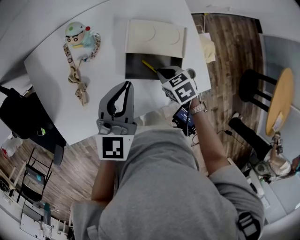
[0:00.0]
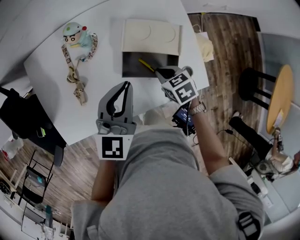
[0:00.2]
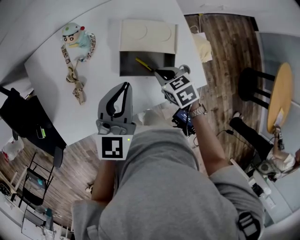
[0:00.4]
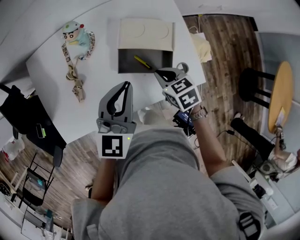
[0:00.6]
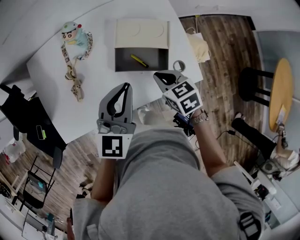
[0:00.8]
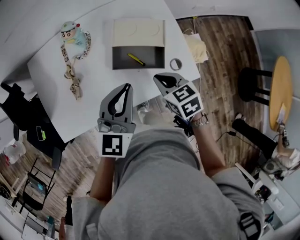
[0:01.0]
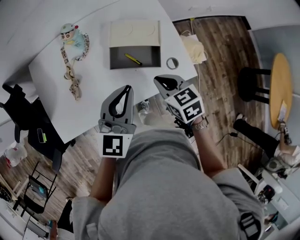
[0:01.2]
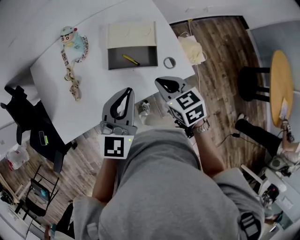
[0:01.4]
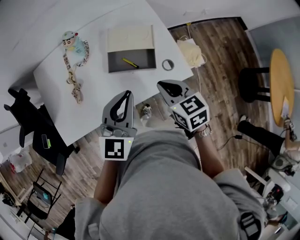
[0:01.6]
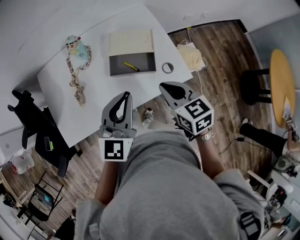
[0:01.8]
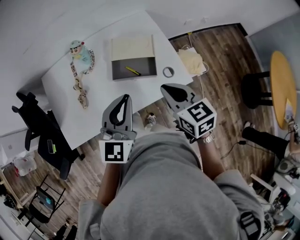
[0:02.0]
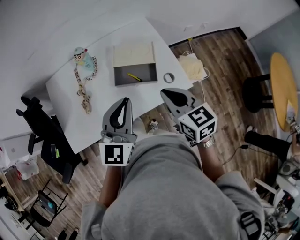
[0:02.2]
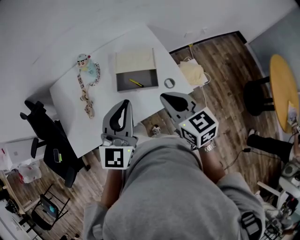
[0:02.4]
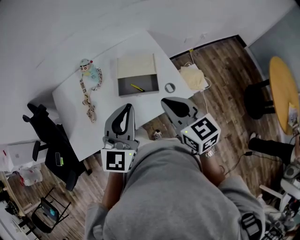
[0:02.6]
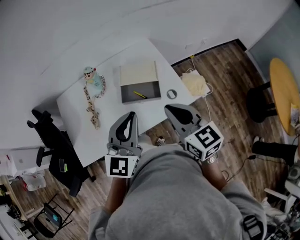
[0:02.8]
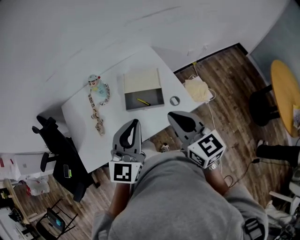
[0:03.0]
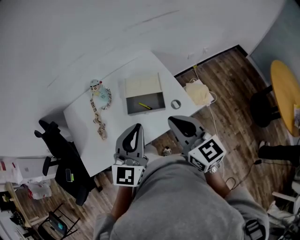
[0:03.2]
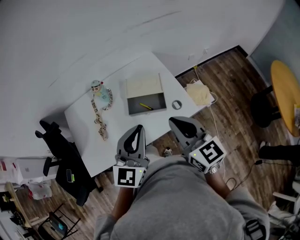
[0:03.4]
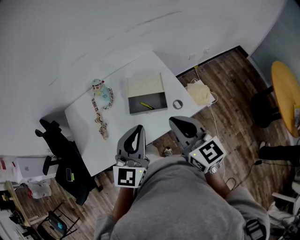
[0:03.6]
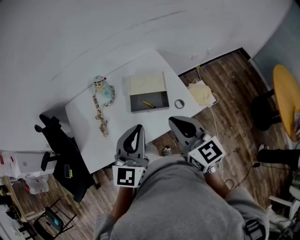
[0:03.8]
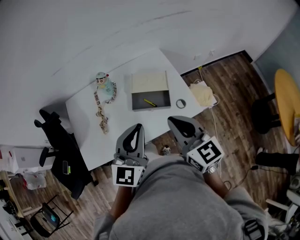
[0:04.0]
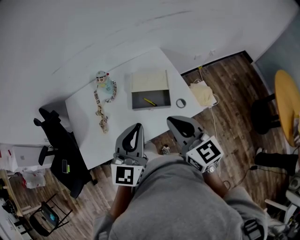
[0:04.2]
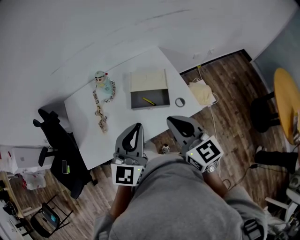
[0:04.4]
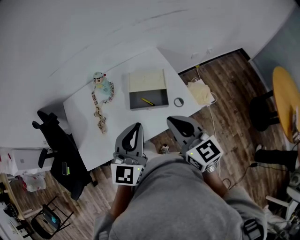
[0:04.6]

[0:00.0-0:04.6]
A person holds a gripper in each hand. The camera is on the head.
0.0 to 1.6 s: The right gripper shifts approximately 20 cm upward and backward, and turns by some 30 degrees. The left gripper moves backward, approximately 15 cm.
1.6 to 3.0 s: The right gripper is displaced upward by approximately 15 cm, and swivels some 30 degrees. Meanwhile the left gripper is displaced upward by about 10 cm.
3.0 to 4.6 s: There are only small adjustments of the grippers.

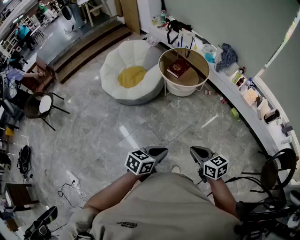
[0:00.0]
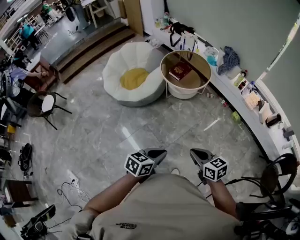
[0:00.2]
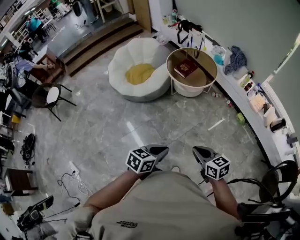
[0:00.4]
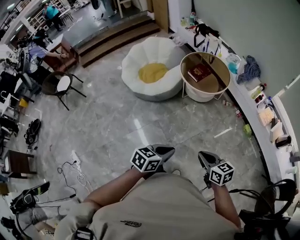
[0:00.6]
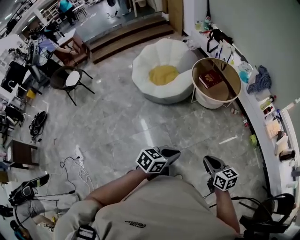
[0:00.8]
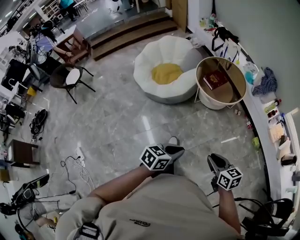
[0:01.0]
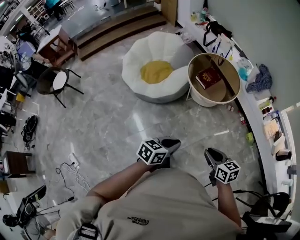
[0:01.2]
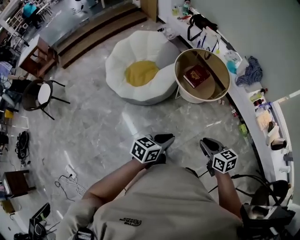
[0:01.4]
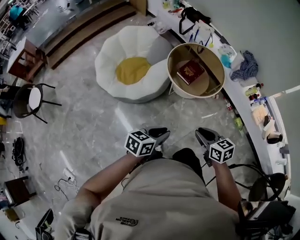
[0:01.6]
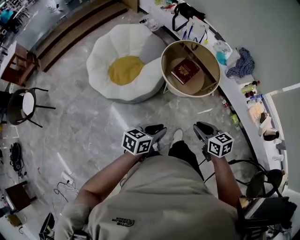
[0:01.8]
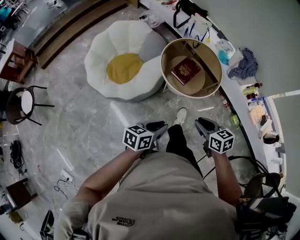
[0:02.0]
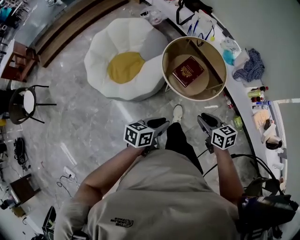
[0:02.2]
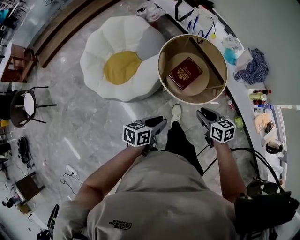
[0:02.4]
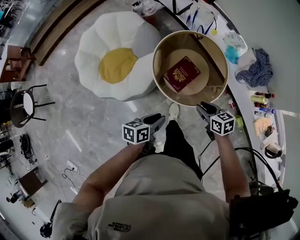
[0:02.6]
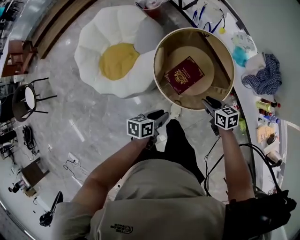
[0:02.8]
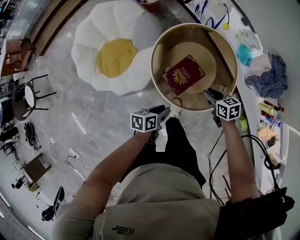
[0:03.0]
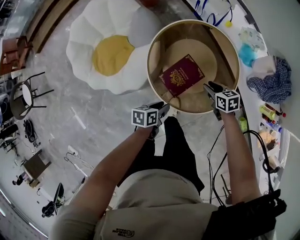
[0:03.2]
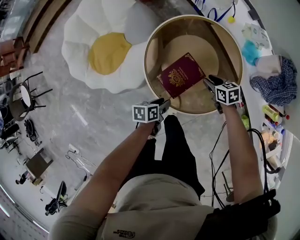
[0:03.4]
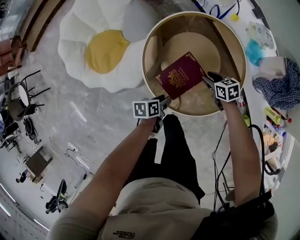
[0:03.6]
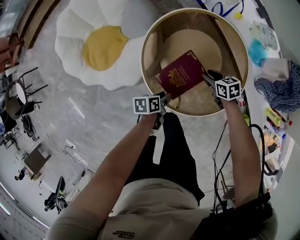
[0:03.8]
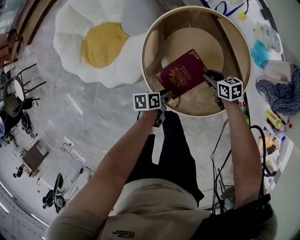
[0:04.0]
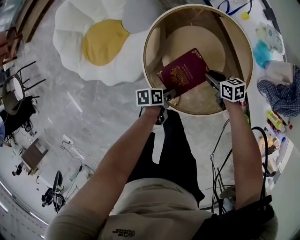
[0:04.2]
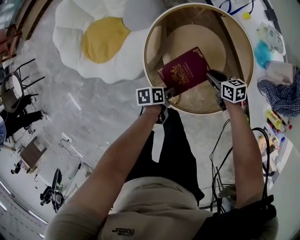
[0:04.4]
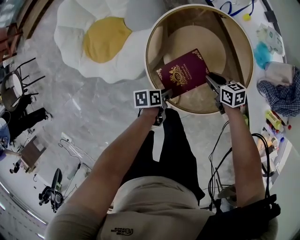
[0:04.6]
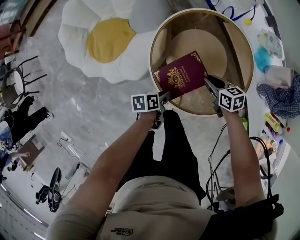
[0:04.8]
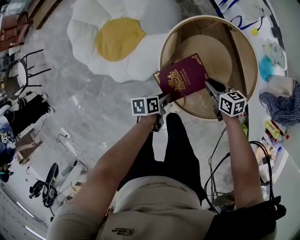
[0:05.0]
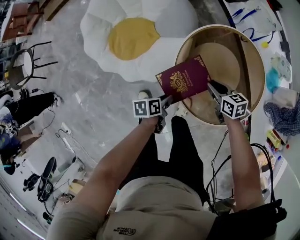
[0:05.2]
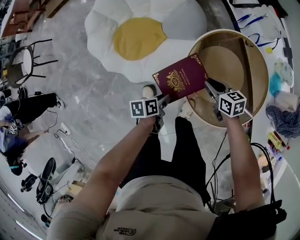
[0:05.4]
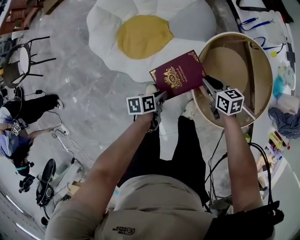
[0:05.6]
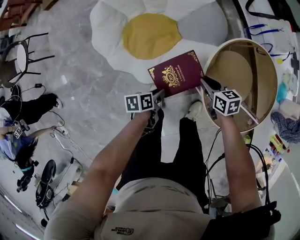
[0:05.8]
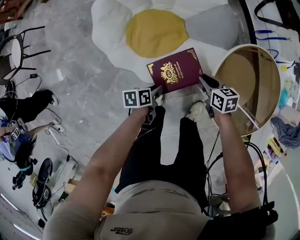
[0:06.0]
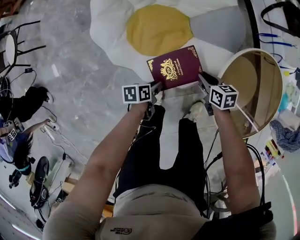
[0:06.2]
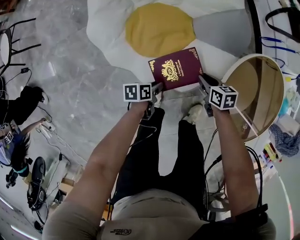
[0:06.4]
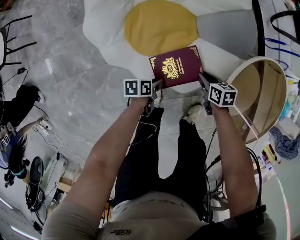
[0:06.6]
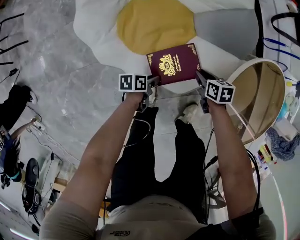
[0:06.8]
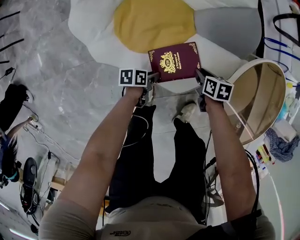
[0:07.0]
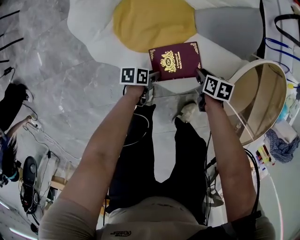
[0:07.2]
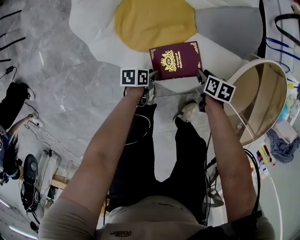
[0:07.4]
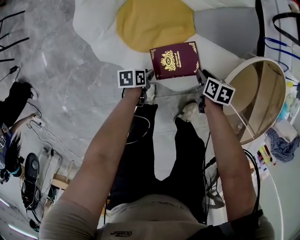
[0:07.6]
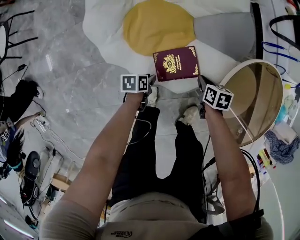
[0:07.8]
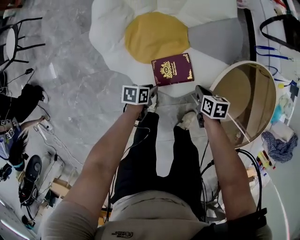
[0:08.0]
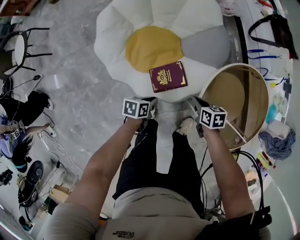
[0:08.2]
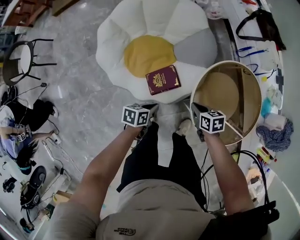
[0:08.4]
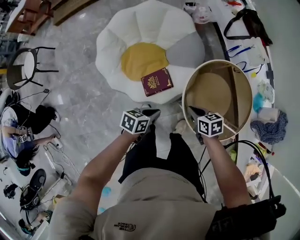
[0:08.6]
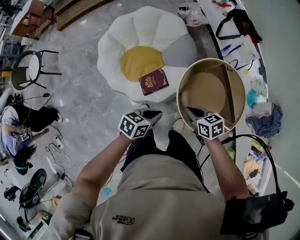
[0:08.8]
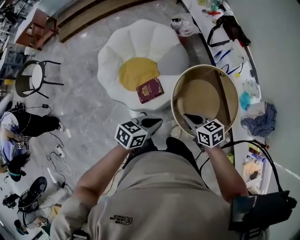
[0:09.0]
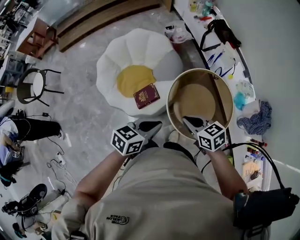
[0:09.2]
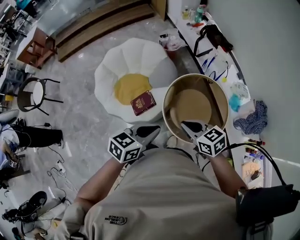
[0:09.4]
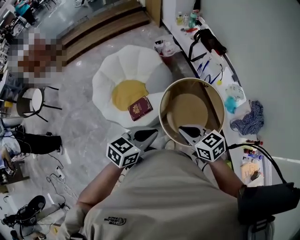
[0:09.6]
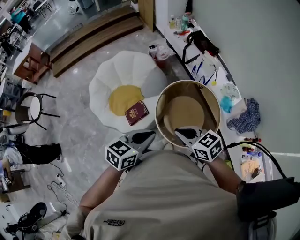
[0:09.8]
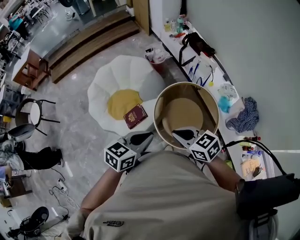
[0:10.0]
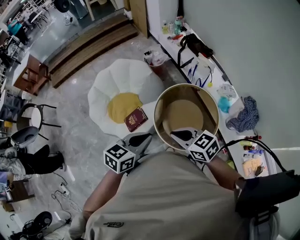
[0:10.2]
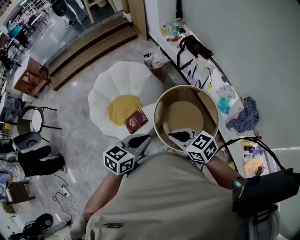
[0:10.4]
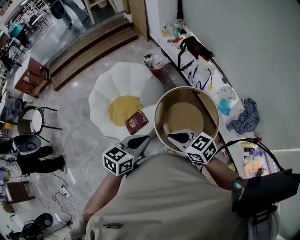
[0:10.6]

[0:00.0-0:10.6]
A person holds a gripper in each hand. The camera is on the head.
0.0 to 1.6 s: The two grippers go about 30 cm forward.
1.6 to 3.0 s: The pair of grippers is taken forward, about 50 cm. Both grippers travel together downward, some 25 cm. The left gripper turns by approximately 30 degrees.
3.0 to 4.6 s: The grippers both shift downward by about 15 cm. The left gripper swivels some 20 degrees.
4.6 to 6.0 s: The left gripper moves roughly 5 cm upward and comes back, while the right gripper moves some 10 cm upward and comes back.
6.0 to 7.6 s: The grippers both shift downward by about 15 cm. The right gripper swivels about 20 degrees.
7.6 to 9.0 s: The right gripper is displaced upward by roughly 50 cm, swivels roughly 40 degrees, and closes its fingers. Meanwhile the left gripper travels upward and to the right by about 60 cm, rotates around the line of its fingers by roughly 50 degrees, clockwise from behind, and closes its fingers.
9.0 to 10.6 s: The right gripper travels upward and backward by approximately 15 cm. The left gripper travels upward and to the right by about 15 cm.

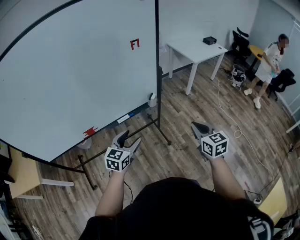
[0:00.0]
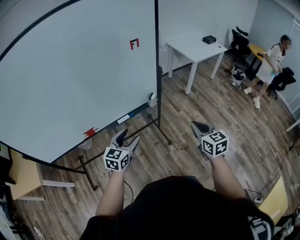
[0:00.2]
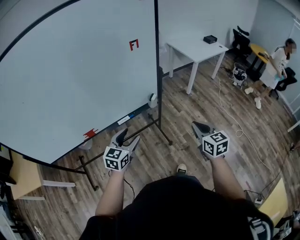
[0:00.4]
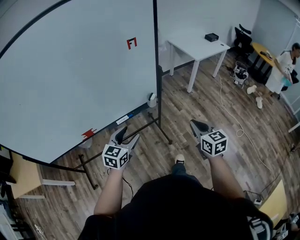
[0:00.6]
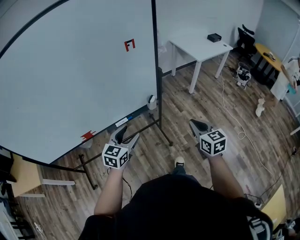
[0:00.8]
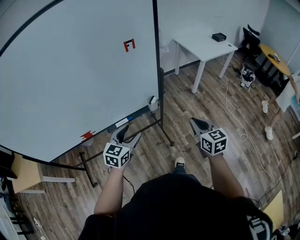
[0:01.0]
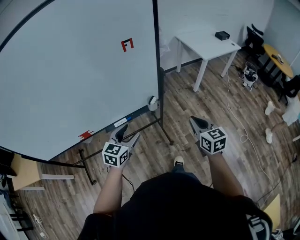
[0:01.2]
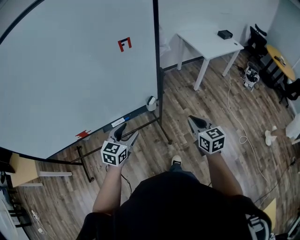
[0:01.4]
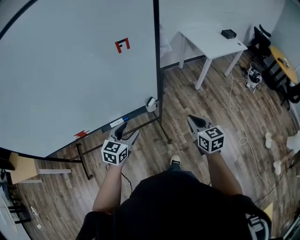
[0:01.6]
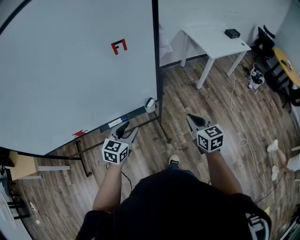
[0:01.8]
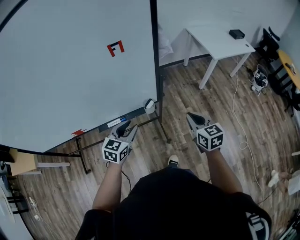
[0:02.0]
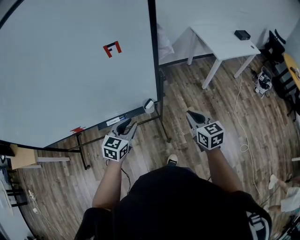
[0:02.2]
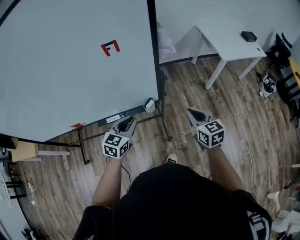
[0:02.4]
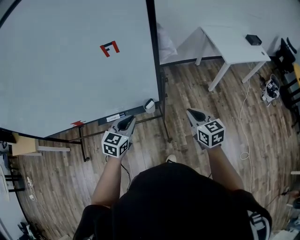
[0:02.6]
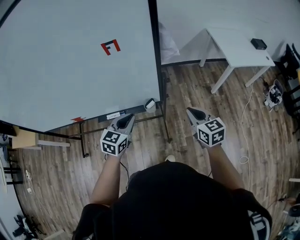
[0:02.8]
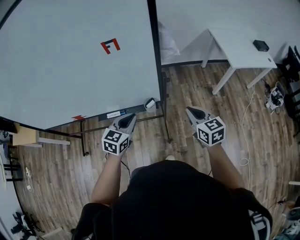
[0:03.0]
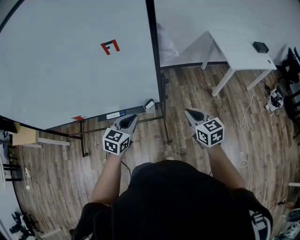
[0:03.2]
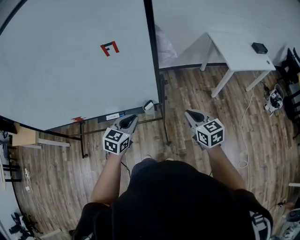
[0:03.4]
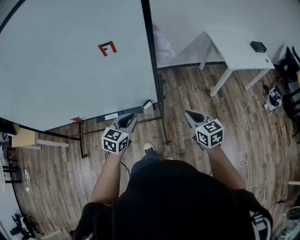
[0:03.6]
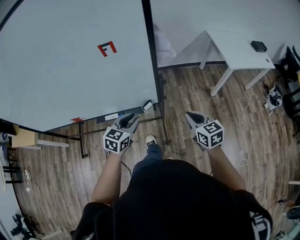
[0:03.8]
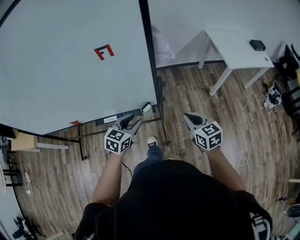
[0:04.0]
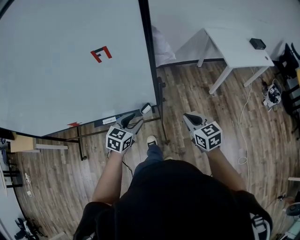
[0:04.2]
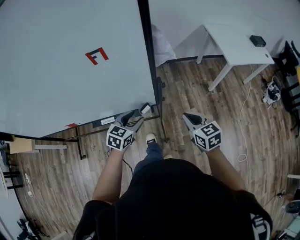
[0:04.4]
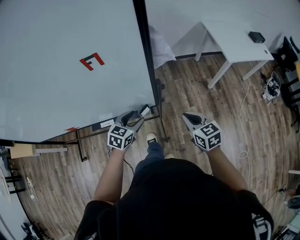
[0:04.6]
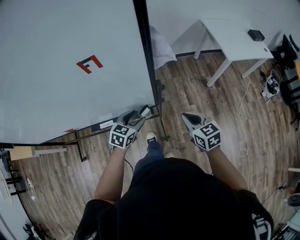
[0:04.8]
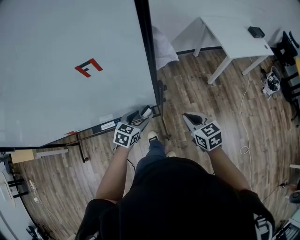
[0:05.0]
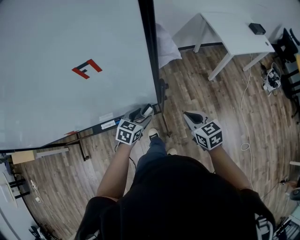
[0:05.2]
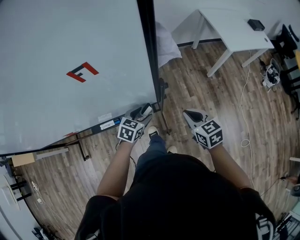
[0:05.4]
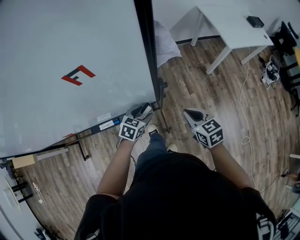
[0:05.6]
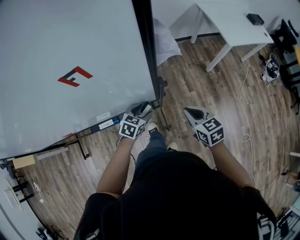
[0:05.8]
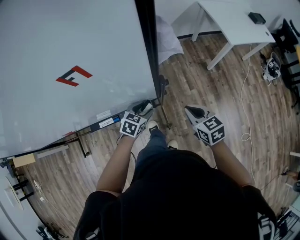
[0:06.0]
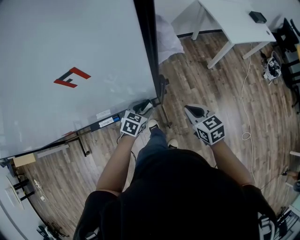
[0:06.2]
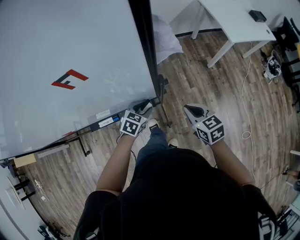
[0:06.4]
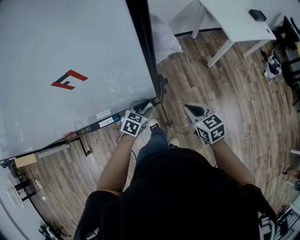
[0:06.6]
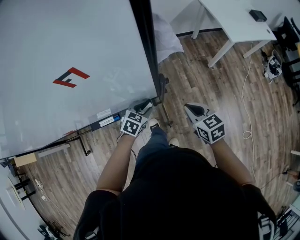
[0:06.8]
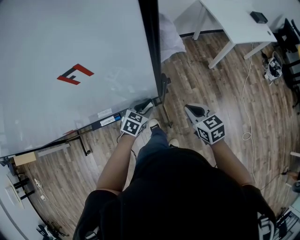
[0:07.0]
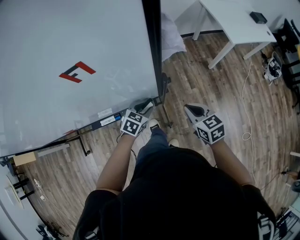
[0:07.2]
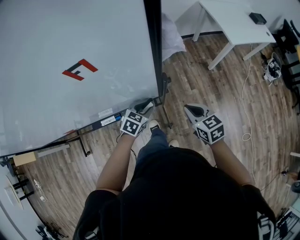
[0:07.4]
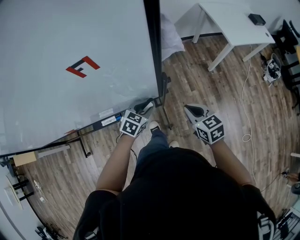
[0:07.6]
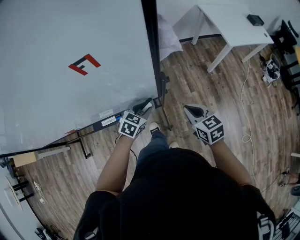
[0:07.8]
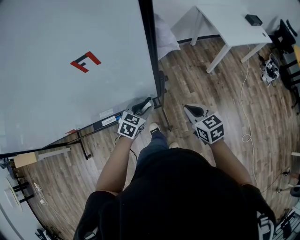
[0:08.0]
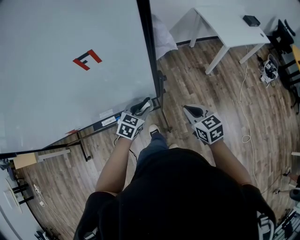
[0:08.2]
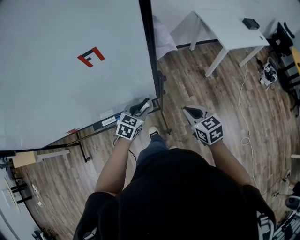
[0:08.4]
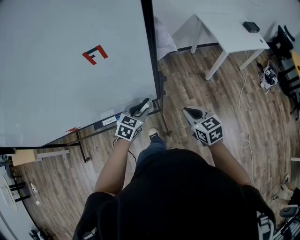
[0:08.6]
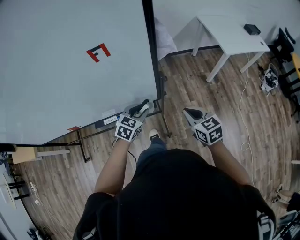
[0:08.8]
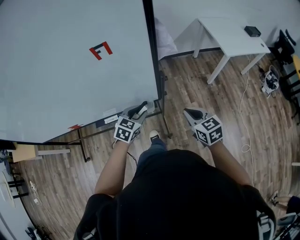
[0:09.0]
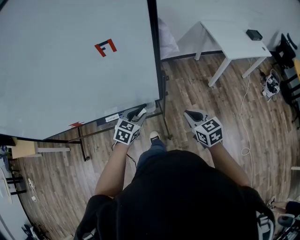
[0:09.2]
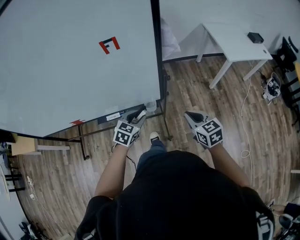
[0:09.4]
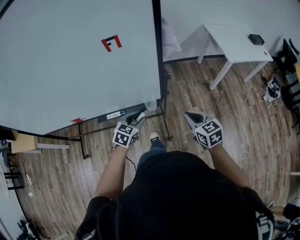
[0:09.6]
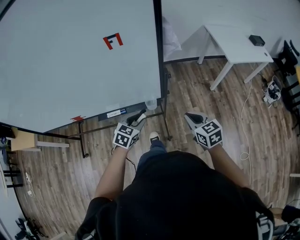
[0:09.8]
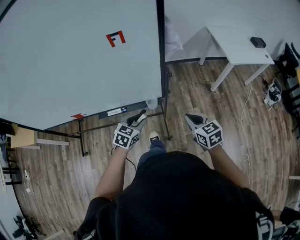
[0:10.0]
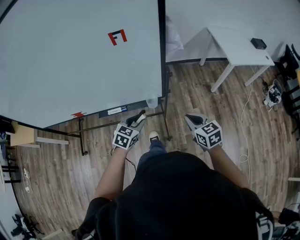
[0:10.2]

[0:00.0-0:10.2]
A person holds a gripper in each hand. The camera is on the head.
0.0 to 1.4 s: Both grippers move forward, about 15 cm.
1.4 to 3.0 s: The right gripper moves forward, about 15 cm, and swivels approximately 20 degrees. Meanwhile the left gripper heads forward and to the right, covering approximately 15 cm, and closes its fingers.
3.0 to 4.4 s: The left gripper moves forward and downward, some 10 cm, and opens its fingers.
4.4 to 5.8 s: The left gripper goes about 15 cm downward and forward; the right gripper goes some 5 cm downward.
5.8 to 7.2 s: The left gripper closes its fingers.
7.2 to 8.8 s: The right gripper is displaced upward and backward by roughly 5 cm. Meanwhile the left gripper goes some 10 cm upward.
8.8 to 10.2 s: The right gripper goes roughly 5 cm backward. Meanwhile the left gripper heads backward, covering about 10 cm.
